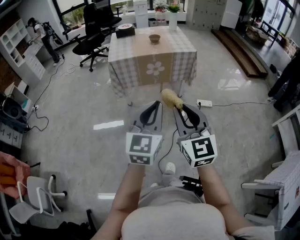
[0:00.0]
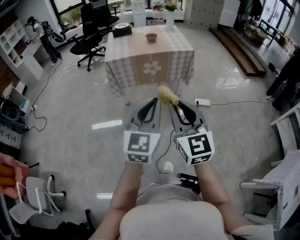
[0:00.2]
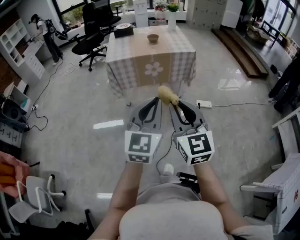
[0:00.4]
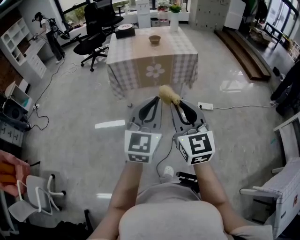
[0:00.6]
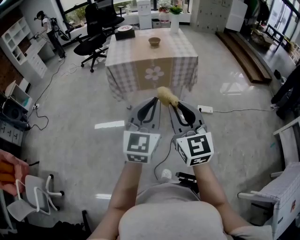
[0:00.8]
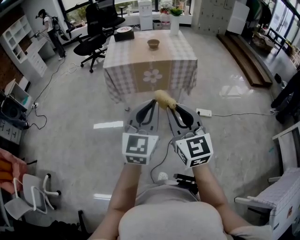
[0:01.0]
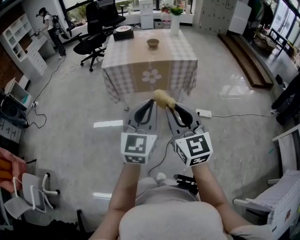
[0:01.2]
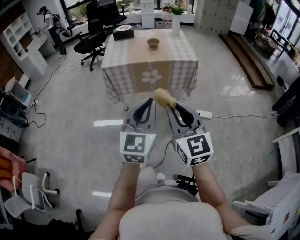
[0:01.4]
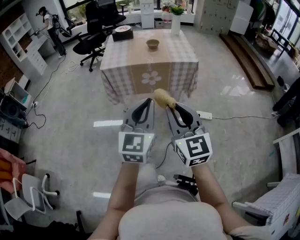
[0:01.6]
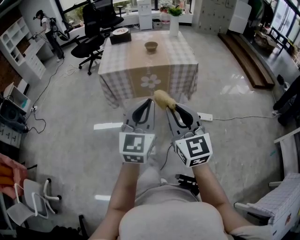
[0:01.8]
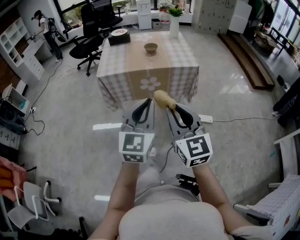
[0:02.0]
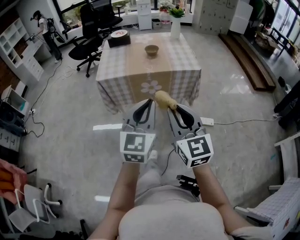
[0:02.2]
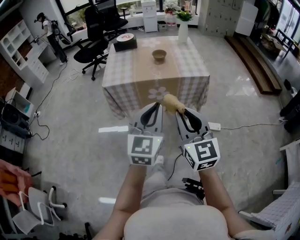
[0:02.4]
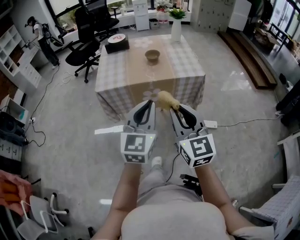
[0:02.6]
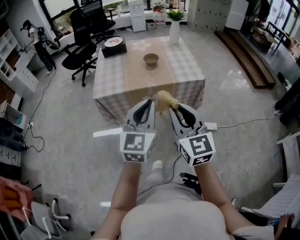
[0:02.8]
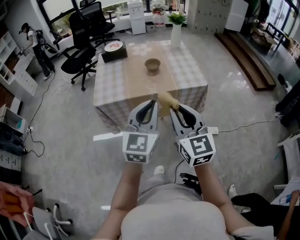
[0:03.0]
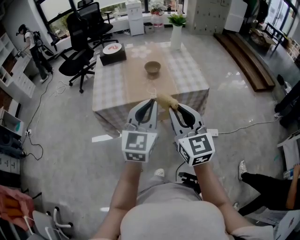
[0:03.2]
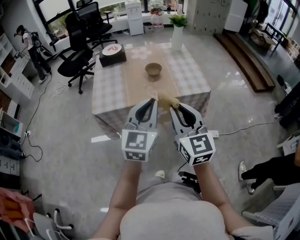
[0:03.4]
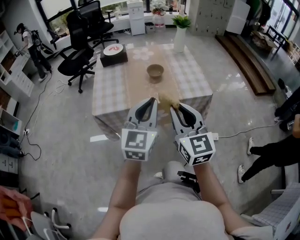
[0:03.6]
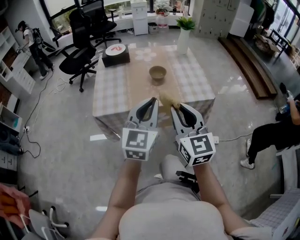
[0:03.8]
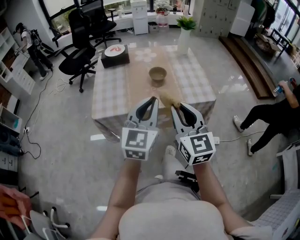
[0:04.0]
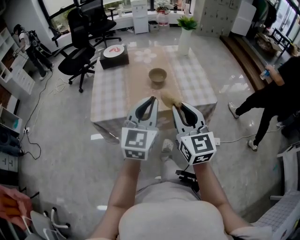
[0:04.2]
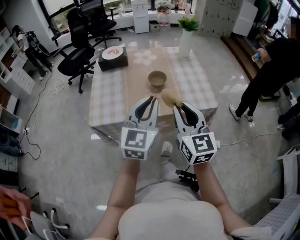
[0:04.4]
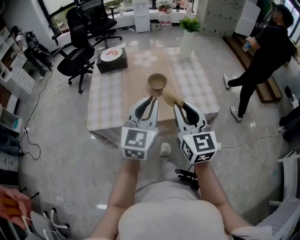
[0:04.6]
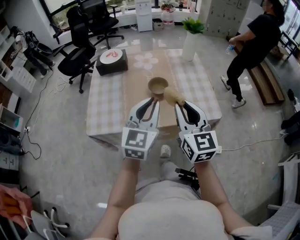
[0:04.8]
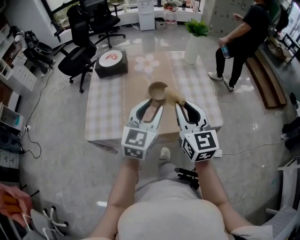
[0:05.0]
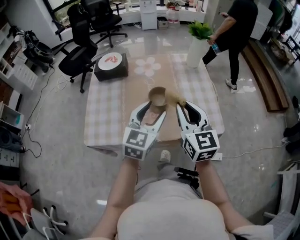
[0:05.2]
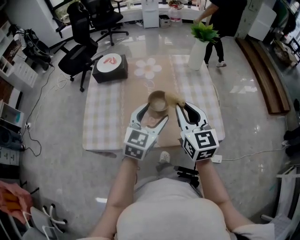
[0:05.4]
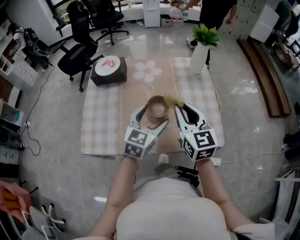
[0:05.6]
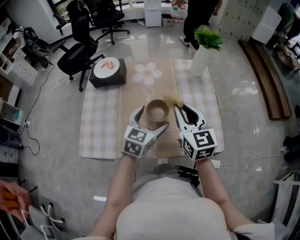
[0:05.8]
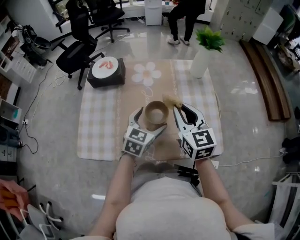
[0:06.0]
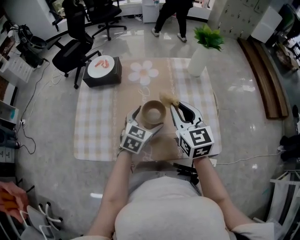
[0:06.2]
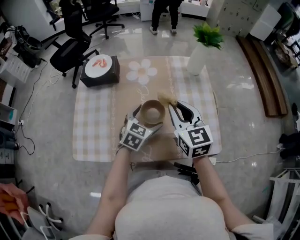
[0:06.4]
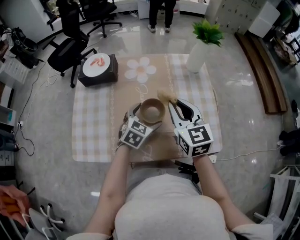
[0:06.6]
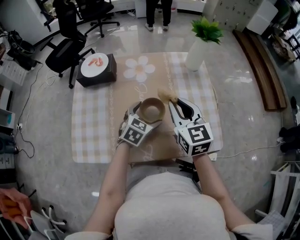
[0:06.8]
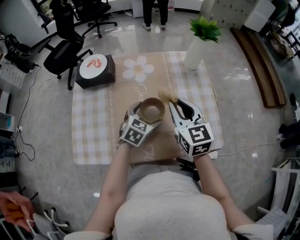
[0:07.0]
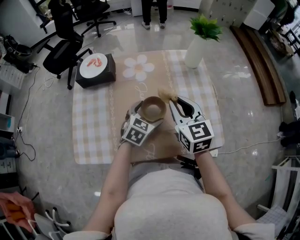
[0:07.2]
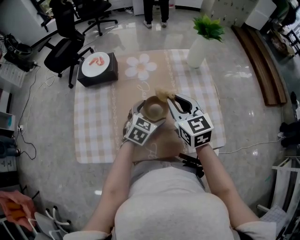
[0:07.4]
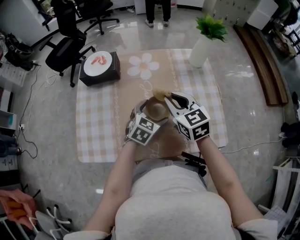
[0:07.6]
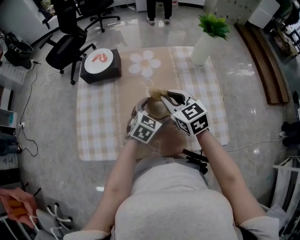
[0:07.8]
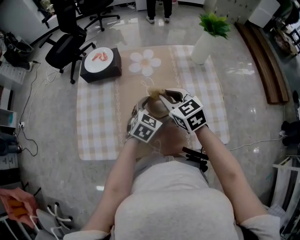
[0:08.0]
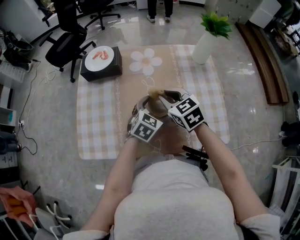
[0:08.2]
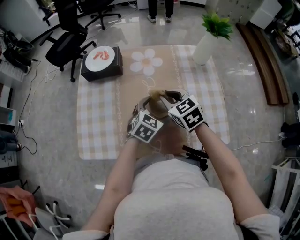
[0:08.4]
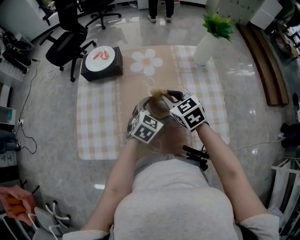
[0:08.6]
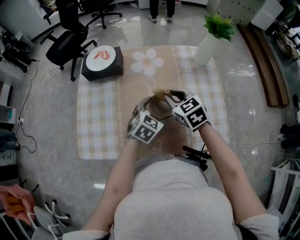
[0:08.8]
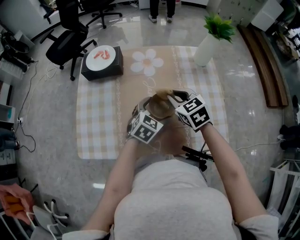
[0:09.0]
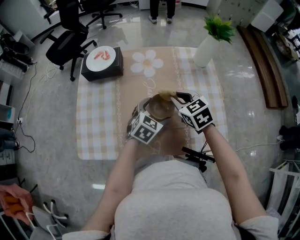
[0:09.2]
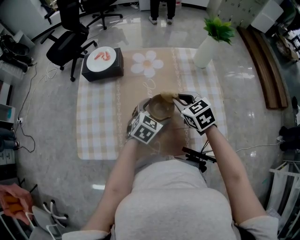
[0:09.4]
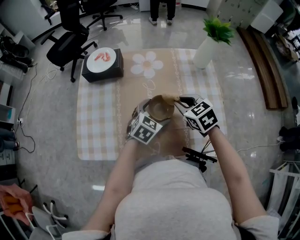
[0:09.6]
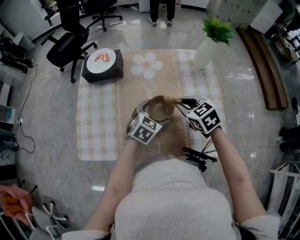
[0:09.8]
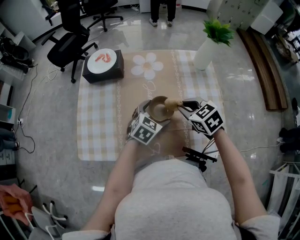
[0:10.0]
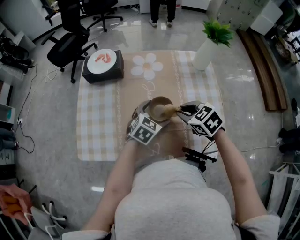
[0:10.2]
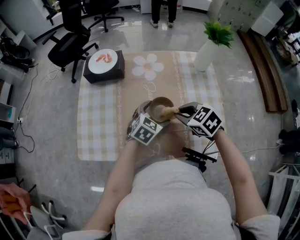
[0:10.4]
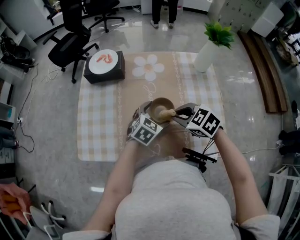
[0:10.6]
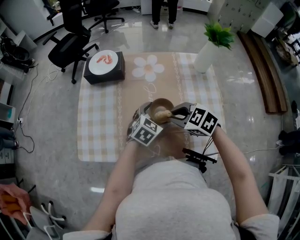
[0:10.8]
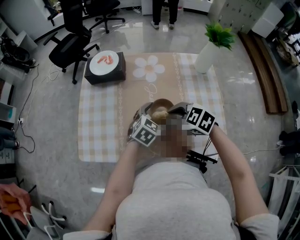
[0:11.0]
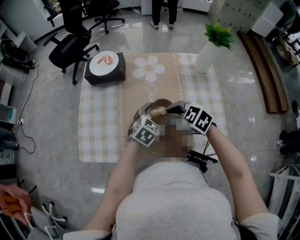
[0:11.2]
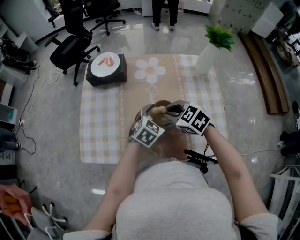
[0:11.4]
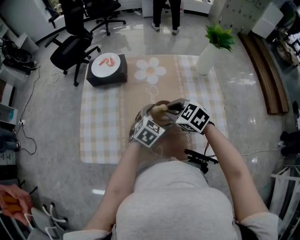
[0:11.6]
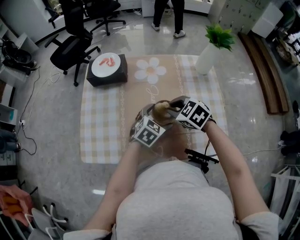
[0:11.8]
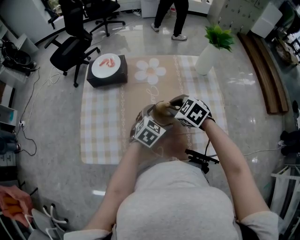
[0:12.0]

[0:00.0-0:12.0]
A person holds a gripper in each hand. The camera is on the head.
0.0 to 1.6 s: Both grippers travel together forward, about 15 cm.
1.6 to 3.0 s: Both grippers travel together forward, roughly 25 cm.
3.0 to 4.4 s: The grippers both shift forward by roughly 15 cm.
4.4 to 6.0 s: The left gripper moves forward and downward, roughly 25 cm, turns by approximately 30 degrees, and opens up. Meanwhile the right gripper travels forward by approximately 25 cm.
6.0 to 7.6 s: Both grippers move downward, roughly 5 cm.
7.6 to 9.0 s: The right gripper changes place by some 5 cm.
9.0 to 10.4 s: The right gripper shifts roughly 5 cm backward, and turns by approximately 20 degrees.
10.4 to 12.0 s: The right gripper moves forward, some 5 cm.

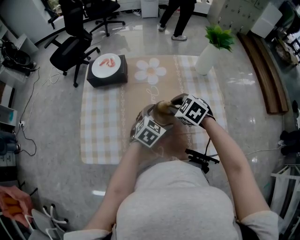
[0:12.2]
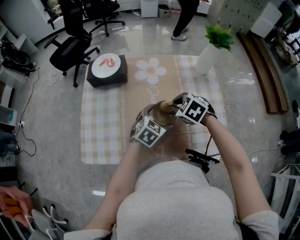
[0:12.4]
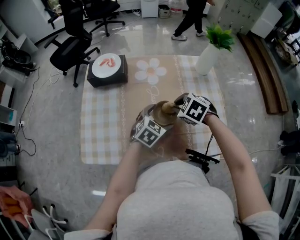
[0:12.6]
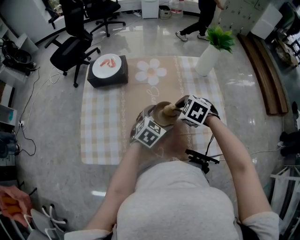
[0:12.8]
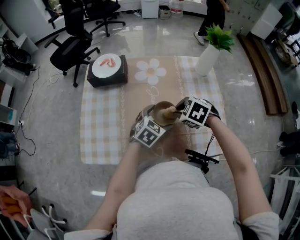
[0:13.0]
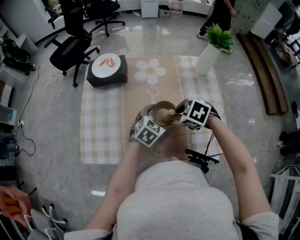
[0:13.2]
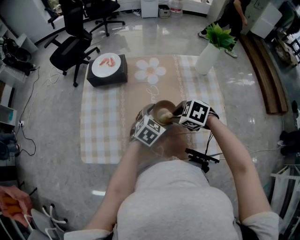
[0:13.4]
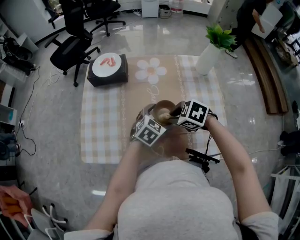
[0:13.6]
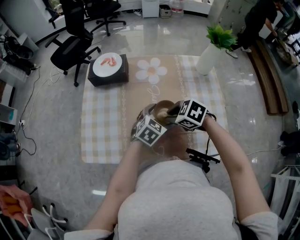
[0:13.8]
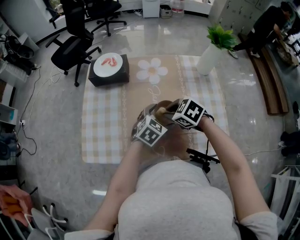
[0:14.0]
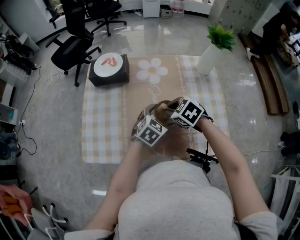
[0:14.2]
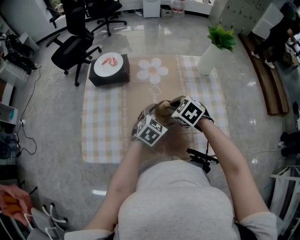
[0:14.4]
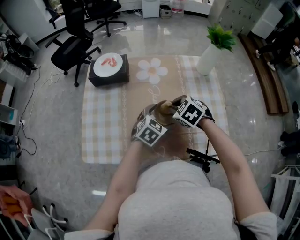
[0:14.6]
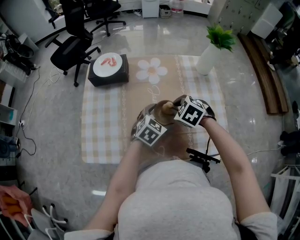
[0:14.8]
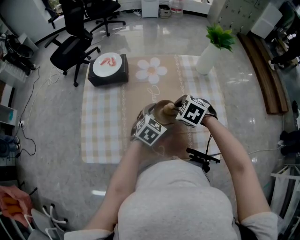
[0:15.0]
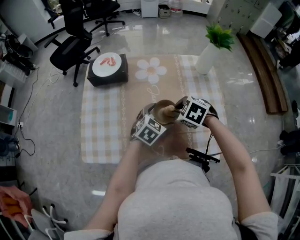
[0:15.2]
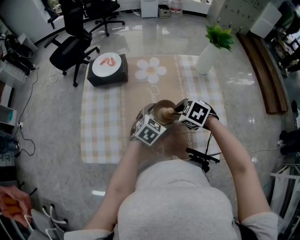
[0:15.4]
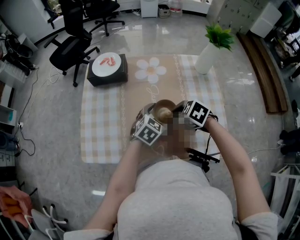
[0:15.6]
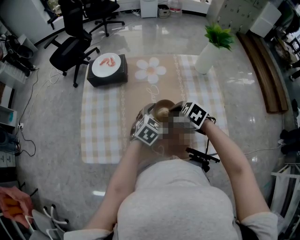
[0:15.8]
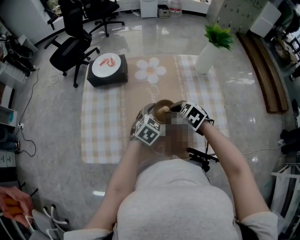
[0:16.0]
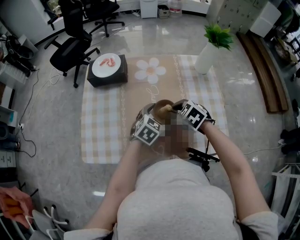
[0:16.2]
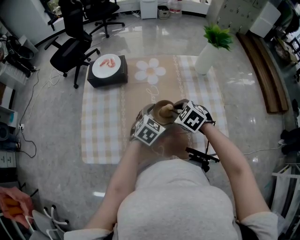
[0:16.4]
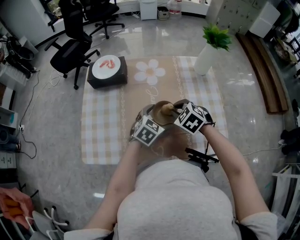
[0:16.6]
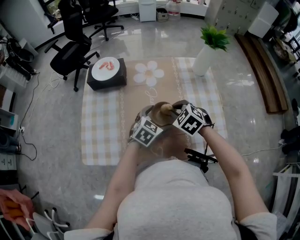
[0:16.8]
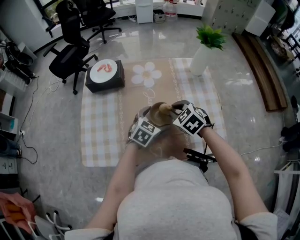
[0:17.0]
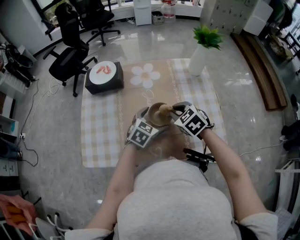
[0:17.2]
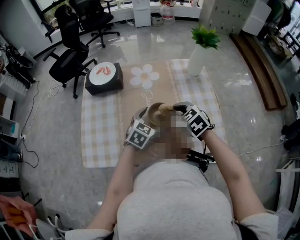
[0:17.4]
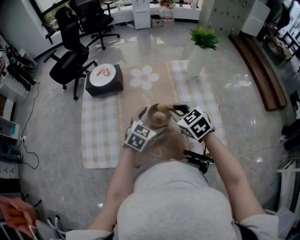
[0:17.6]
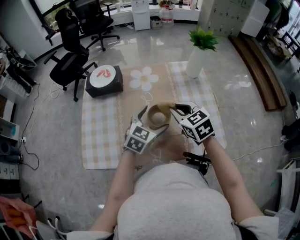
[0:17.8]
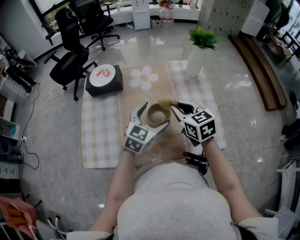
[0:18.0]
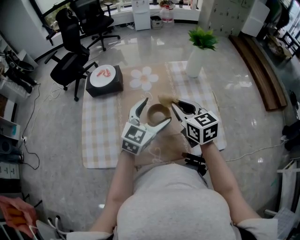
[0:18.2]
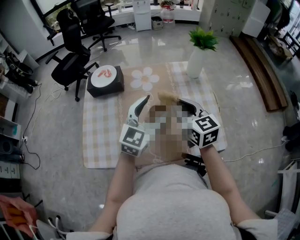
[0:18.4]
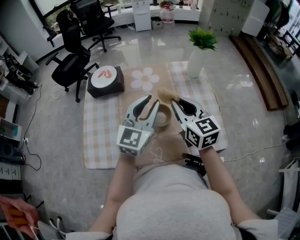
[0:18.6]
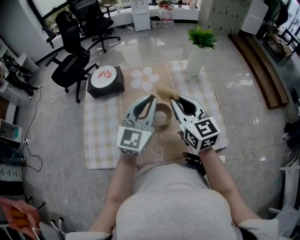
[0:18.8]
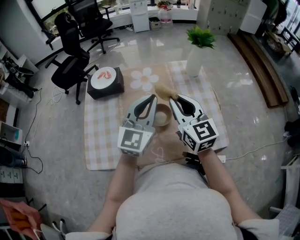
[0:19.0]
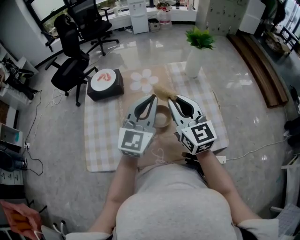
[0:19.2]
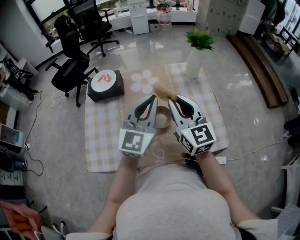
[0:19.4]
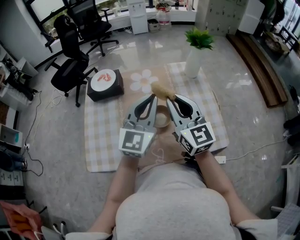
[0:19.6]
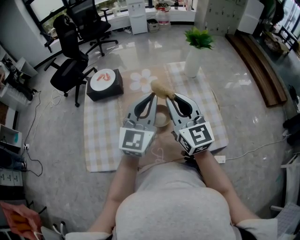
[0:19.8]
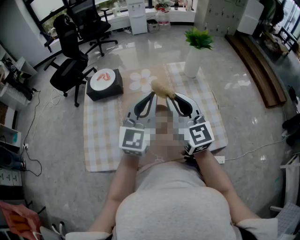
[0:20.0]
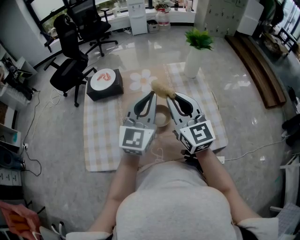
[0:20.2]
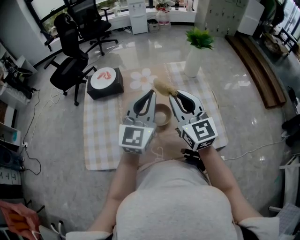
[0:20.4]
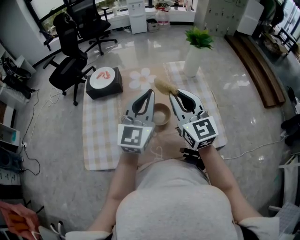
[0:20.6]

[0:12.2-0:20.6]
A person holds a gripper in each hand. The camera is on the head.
12.2 to 13.6 s: The right gripper ends up approximately 5 cm from where it was.
13.6 to 15.0 s: The right gripper changes place by about 5 cm.
15.0 to 16.4 s: The grippers make only small movements.
16.4 to 17.8 s: The grippers both shift upward by some 10 cm. The right gripper turns by roughly 30 degrees.
17.8 to 19.2 s: The left gripper goes some 15 cm upward, angles its fingers upward, by about 30 degrees, and closes up, while the right gripper shifts some 10 cm upward, and points its fingers approximately 30 degrees further upward.
19.2 to 20.6 s: The grippers move only a little.

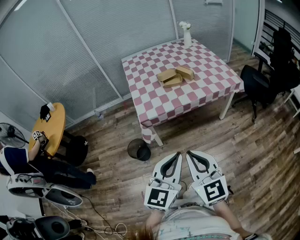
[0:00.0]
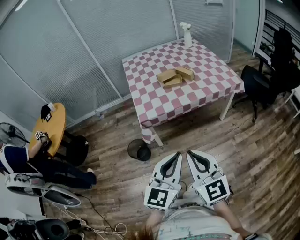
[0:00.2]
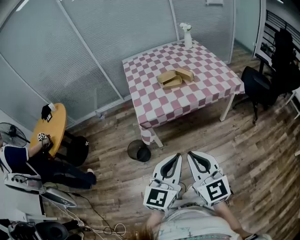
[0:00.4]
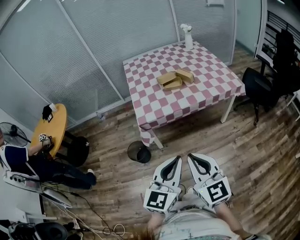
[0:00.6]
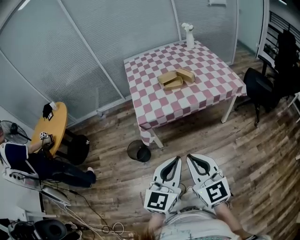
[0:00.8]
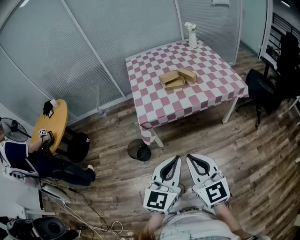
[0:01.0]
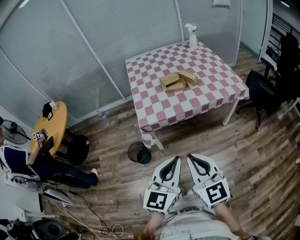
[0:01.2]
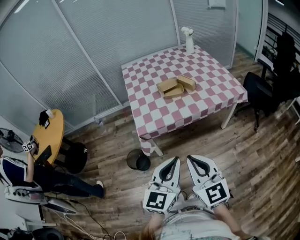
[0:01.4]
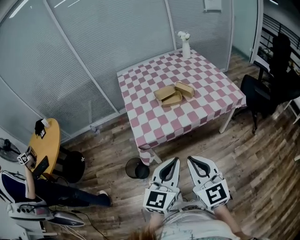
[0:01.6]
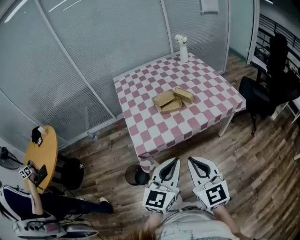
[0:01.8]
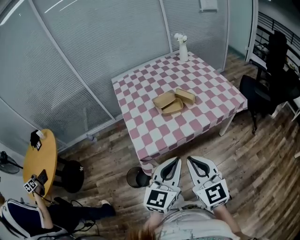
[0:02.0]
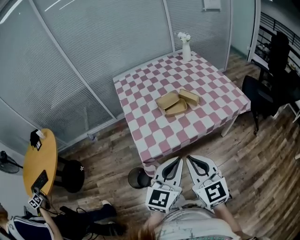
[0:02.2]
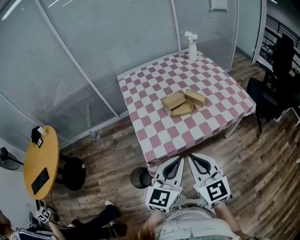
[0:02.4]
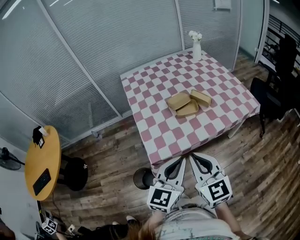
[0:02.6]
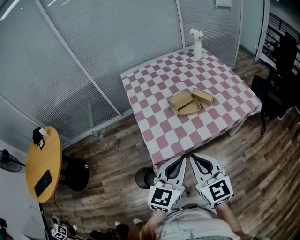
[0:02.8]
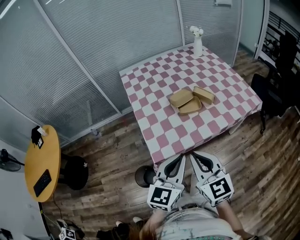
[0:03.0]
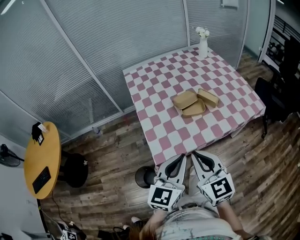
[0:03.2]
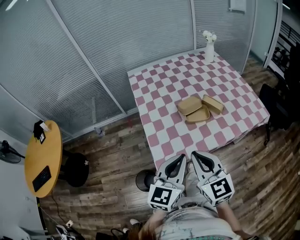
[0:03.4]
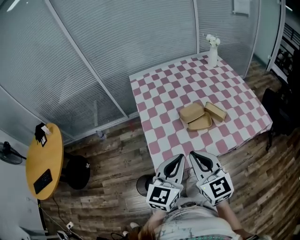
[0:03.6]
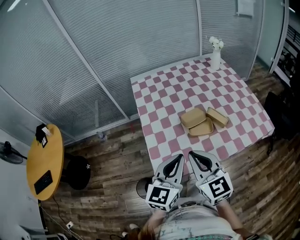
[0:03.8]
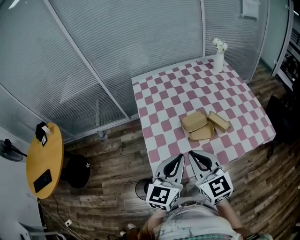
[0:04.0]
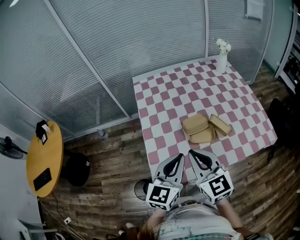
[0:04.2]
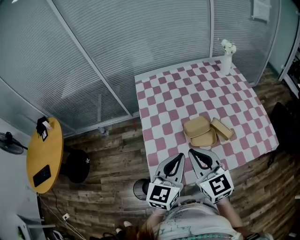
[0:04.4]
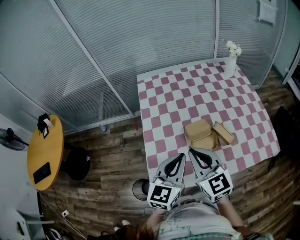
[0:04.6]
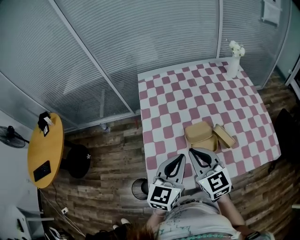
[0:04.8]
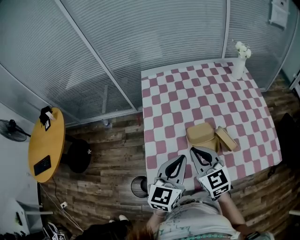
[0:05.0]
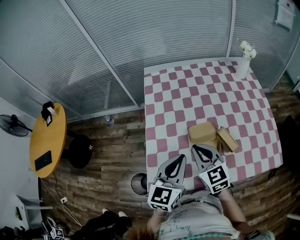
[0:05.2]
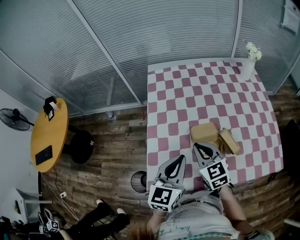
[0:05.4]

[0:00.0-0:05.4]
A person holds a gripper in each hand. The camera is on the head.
0.0 to 1.4 s: The grippers both shift forward by some 10 cm.
1.4 to 2.8 s: The grippers both shift forward and to the left by roughly 25 cm.
2.8 to 4.0 s: Both grippers travel together forward, roughly 20 cm.
4.0 to 5.4 s: The left gripper travels forward by approximately 10 cm; the right gripper heads forward and downward, covering some 20 cm, and turns by approximately 20 degrees.
